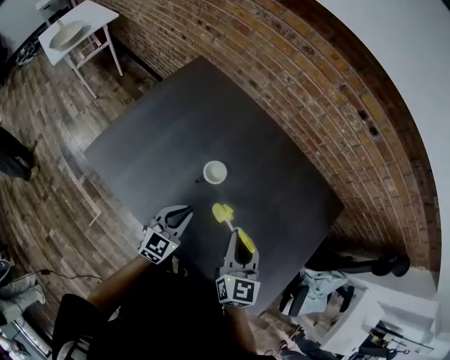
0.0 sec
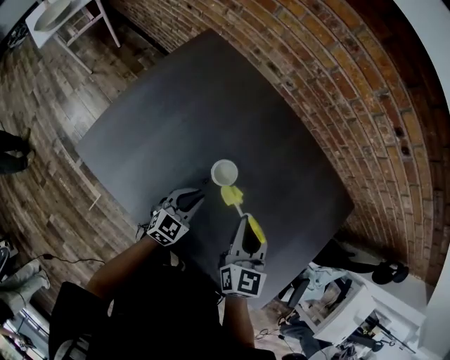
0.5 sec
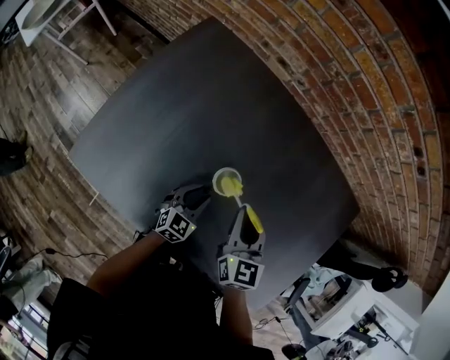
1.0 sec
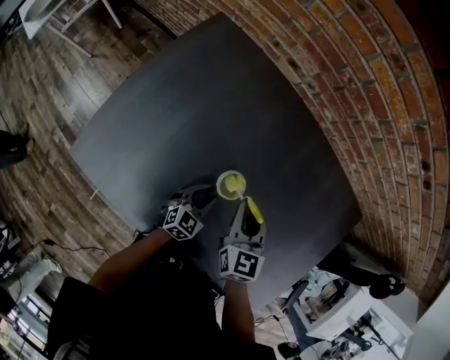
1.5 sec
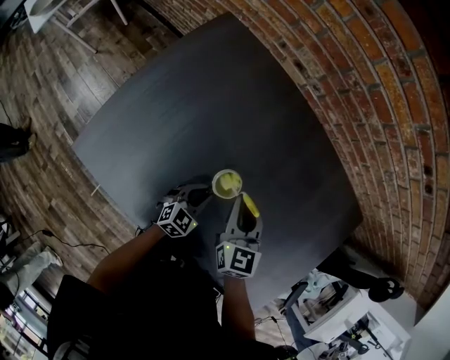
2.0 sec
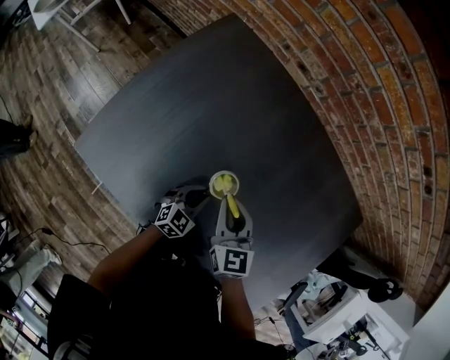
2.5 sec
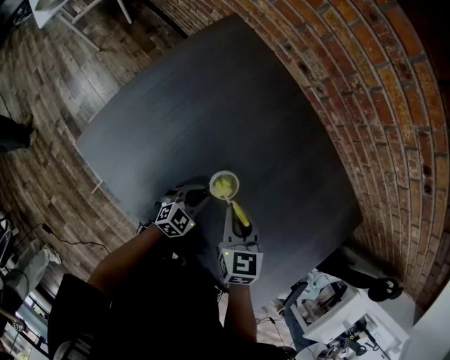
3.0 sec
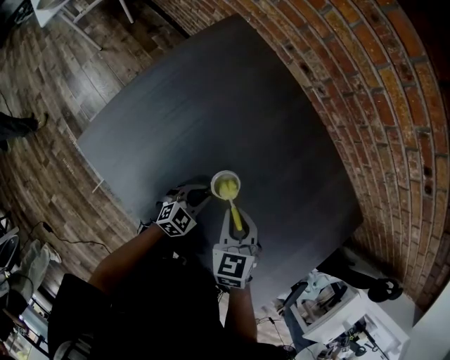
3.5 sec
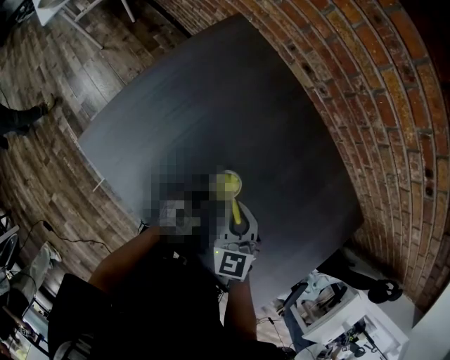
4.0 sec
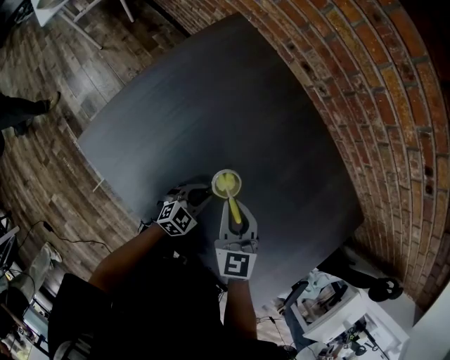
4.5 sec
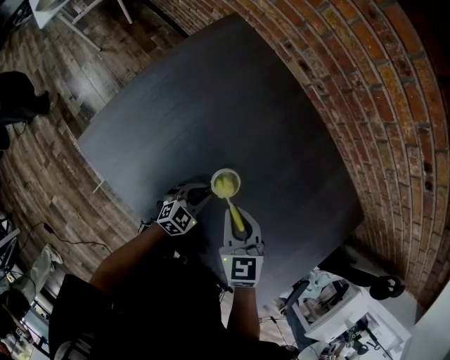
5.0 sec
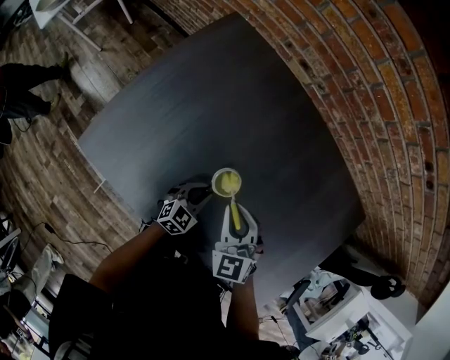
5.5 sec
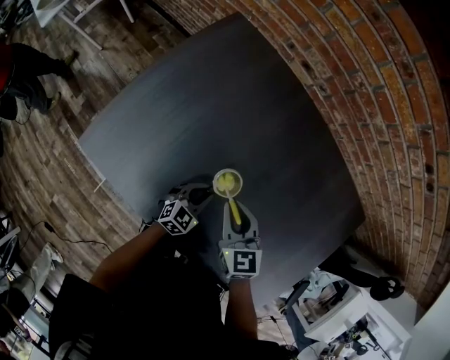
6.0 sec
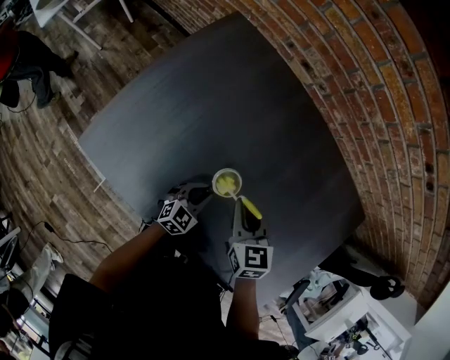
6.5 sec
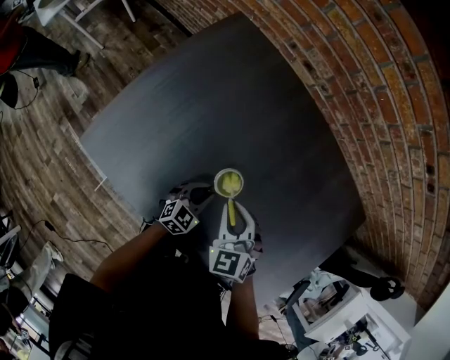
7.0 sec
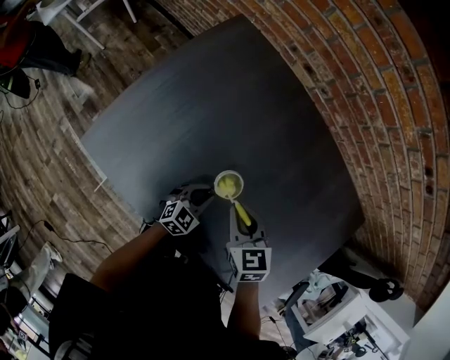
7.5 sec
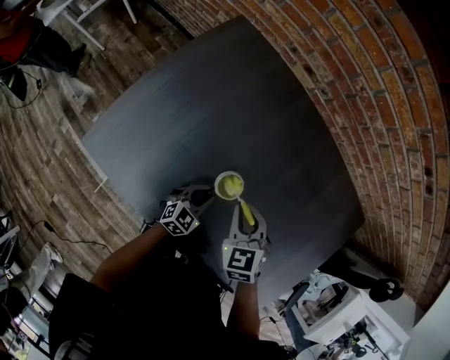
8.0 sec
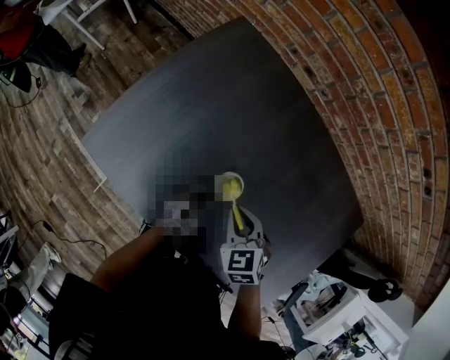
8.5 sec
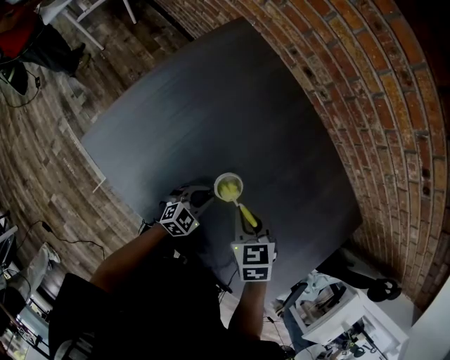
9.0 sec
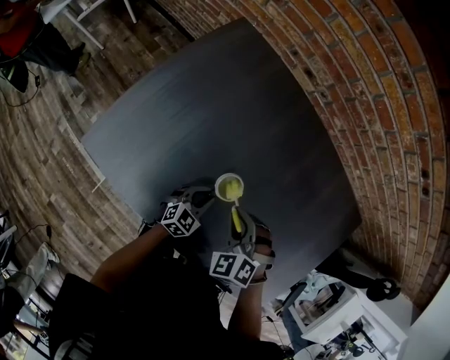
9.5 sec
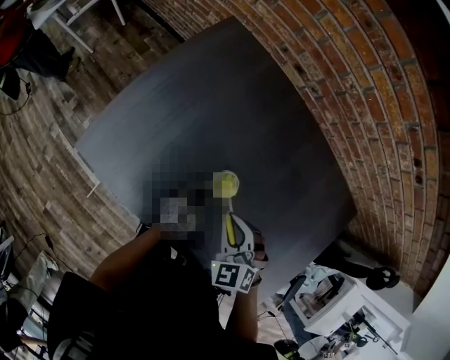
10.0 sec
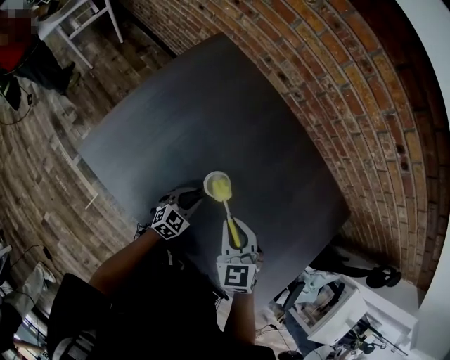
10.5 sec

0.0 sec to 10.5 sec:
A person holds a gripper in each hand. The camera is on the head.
0.0 sec to 2.0 sec: The left gripper goes approximately 25 cm downward and forward, and rotates roughly 20 degrees. Meanwhile the right gripper heads forward, to the left and downward, covering roughly 25 cm.
2.0 sec to 4.0 sec: The right gripper shifts by about 5 cm, and changes its angle by about 20 degrees.
4.0 sec to 6.5 sec: The right gripper turns by about 20 degrees.
6.5 sec to 8.5 sec: The right gripper turns by roughly 30 degrees.
8.5 sec to 10.5 sec: The right gripper heads upward, covering about 5 cm.

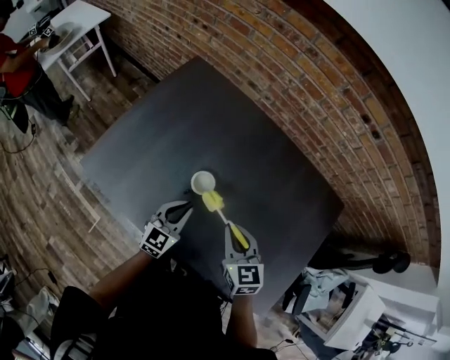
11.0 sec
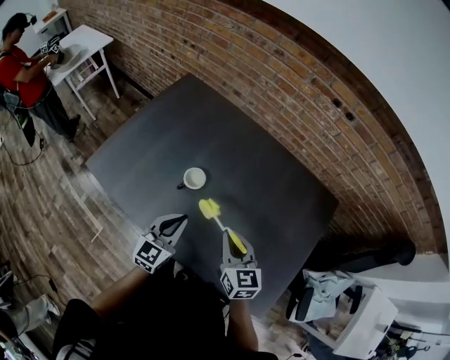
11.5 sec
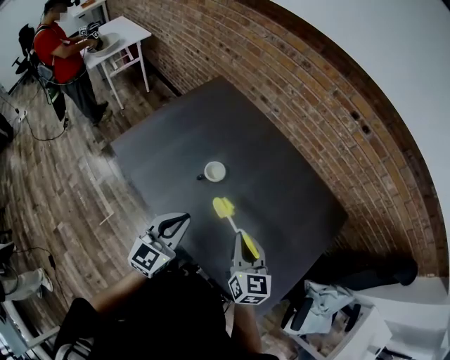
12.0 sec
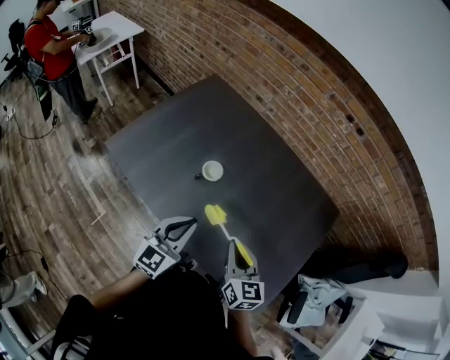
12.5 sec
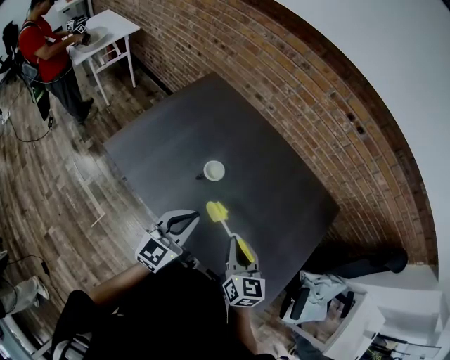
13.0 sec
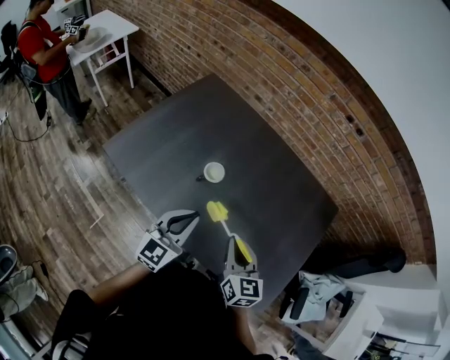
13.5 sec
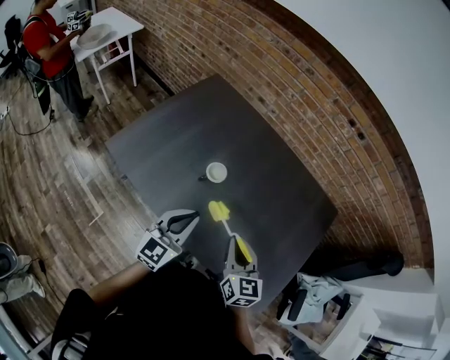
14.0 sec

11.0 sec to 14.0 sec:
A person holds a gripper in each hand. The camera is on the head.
11.0 sec to 12.5 sec: The right gripper moves backward, approximately 15 cm. Meanwhile the left gripper shifts roughly 25 cm backward and upward.
12.5 sec to 14.0 sec: The grippers move only a little.

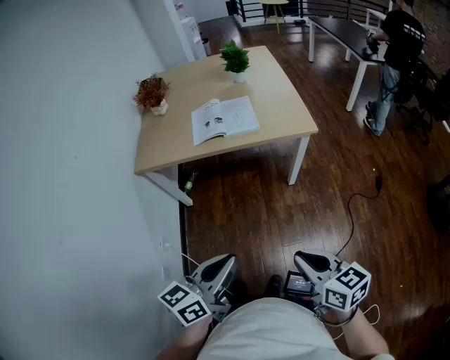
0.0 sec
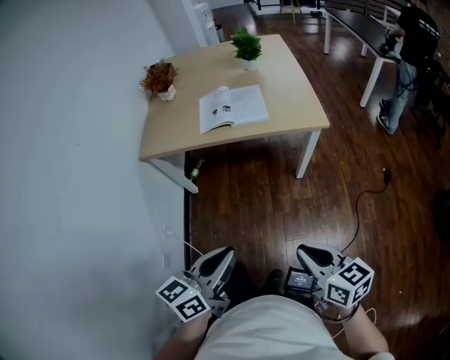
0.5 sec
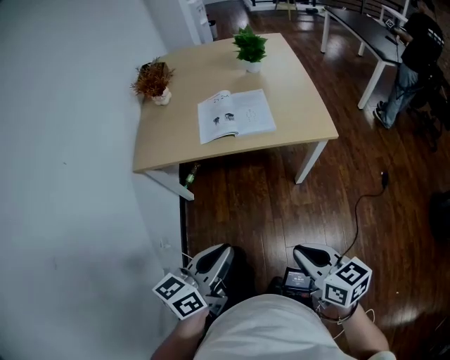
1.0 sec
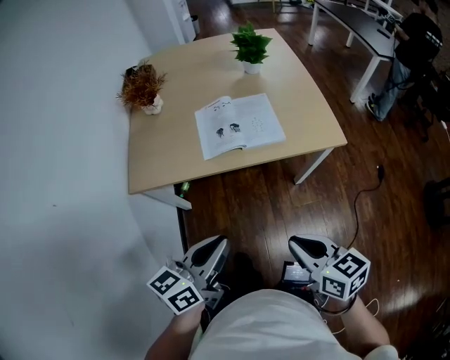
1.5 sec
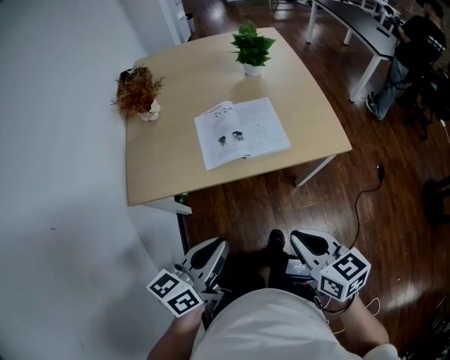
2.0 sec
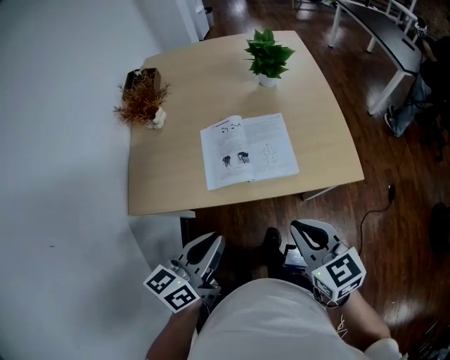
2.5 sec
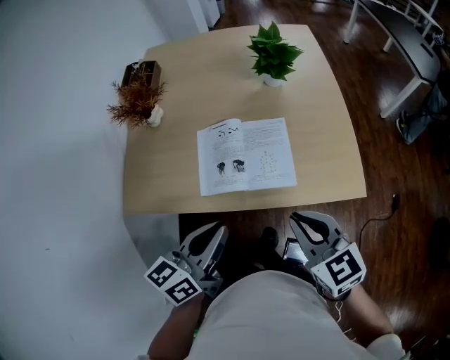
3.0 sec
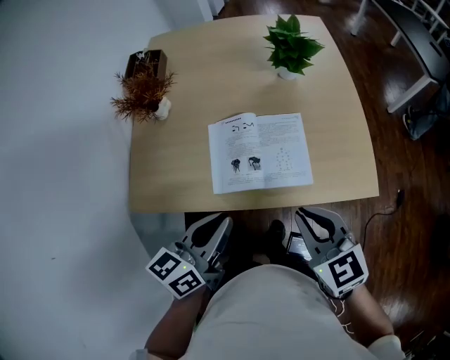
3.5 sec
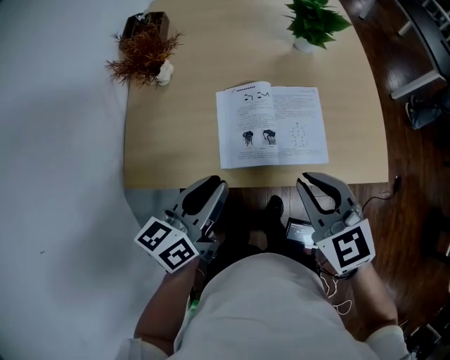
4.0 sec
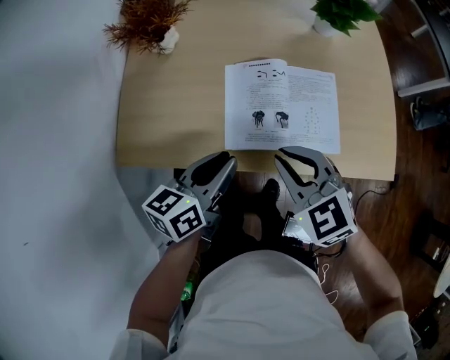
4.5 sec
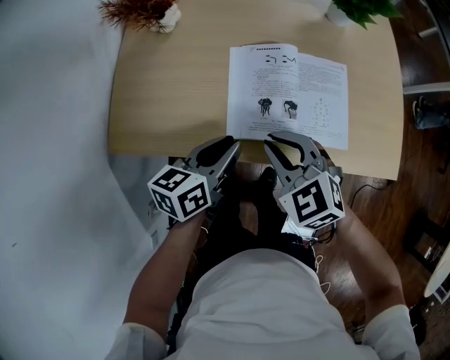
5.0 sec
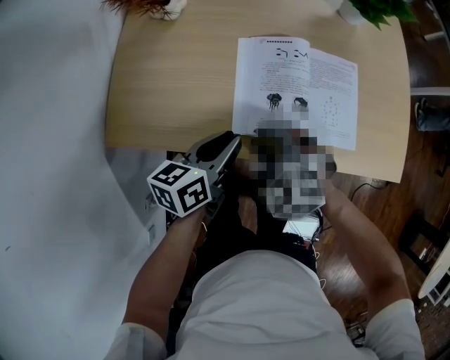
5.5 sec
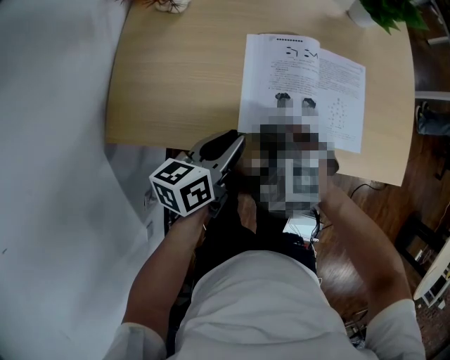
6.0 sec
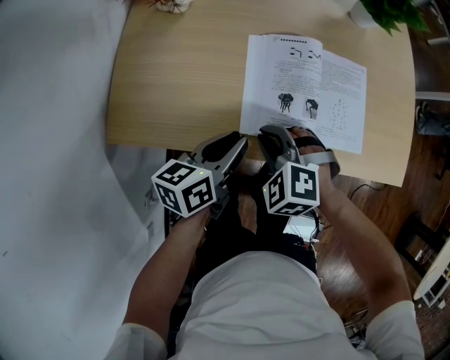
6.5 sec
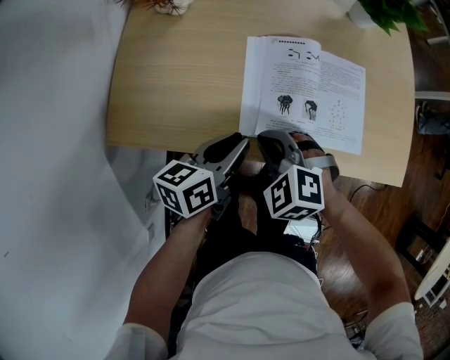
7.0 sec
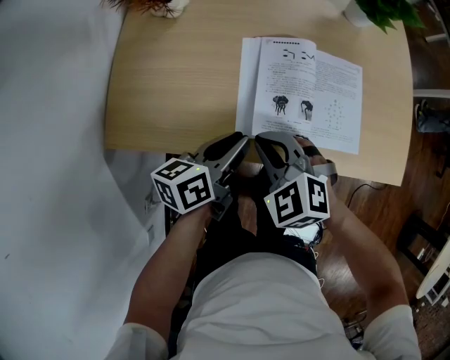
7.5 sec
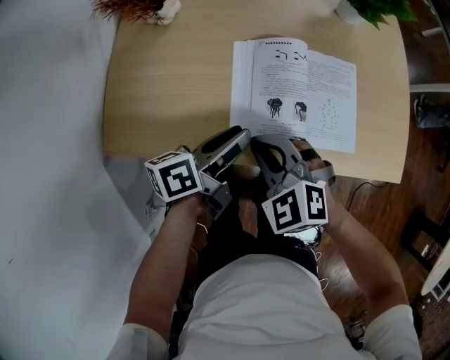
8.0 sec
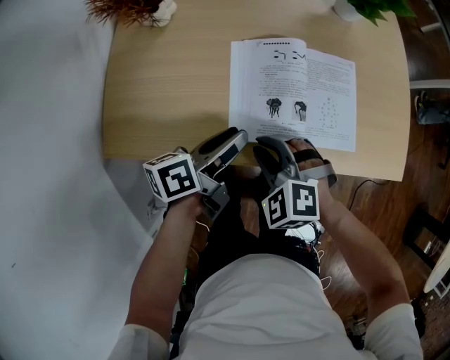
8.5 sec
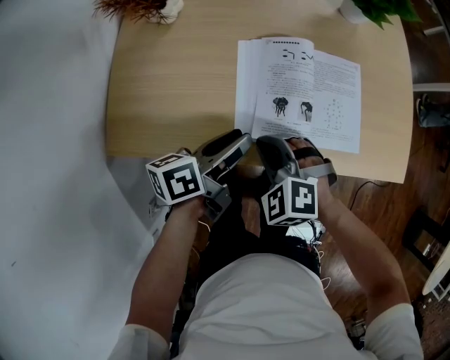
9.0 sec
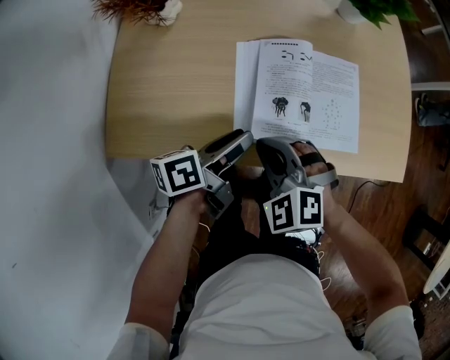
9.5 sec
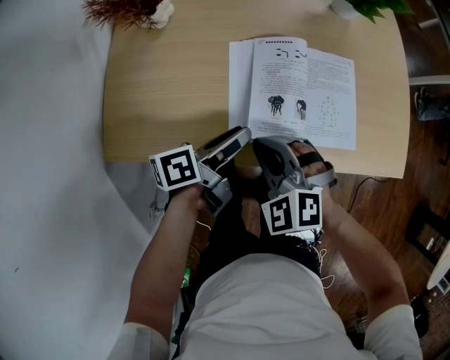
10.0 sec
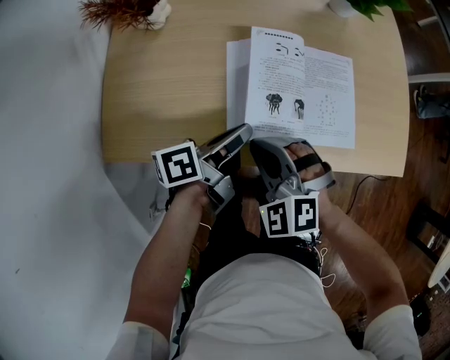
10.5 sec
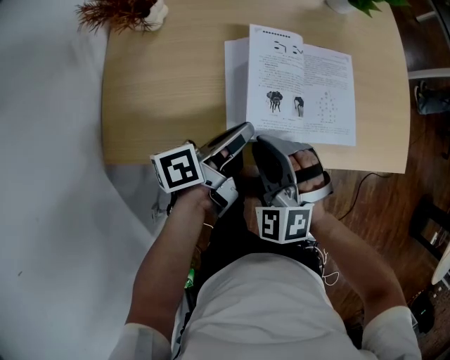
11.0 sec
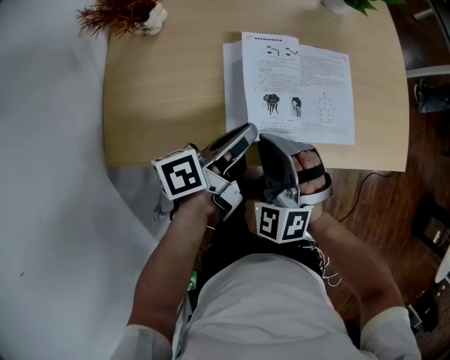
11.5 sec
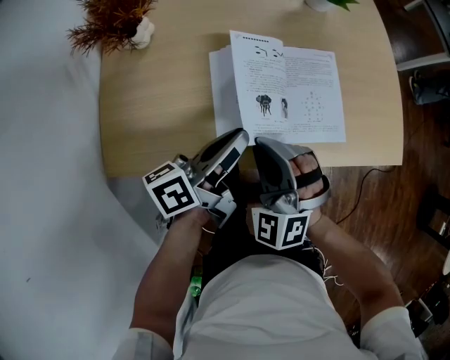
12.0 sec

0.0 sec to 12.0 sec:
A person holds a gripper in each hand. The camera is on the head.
0.0 sec to 2.0 sec: Both grippers travel together forward and to the left, roughly 30 cm.
2.0 sec to 4.0 sec: Both grippers move forward, roughly 25 cm. The right gripper turns by about 30 degrees.
4.0 sec to 6.0 sec: The left gripper shifts roughly 15 cm downward. The right gripper goes roughly 25 cm downward and to the left, and rotates around the line of its fingers by about 40 degrees, counterclockwise from behind.
6.0 sec to 8.0 sec: The right gripper is displaced upward by about 5 cm. Meanwhile the left gripper turns by some 20 degrees.
8.0 sec to 10.0 sec: The grippers move only a little.
10.0 sec to 12.0 sec: The left gripper shifts about 5 cm upward, and closes. The right gripper changes place by about 5 cm, and rotates approximately 30 degrees.

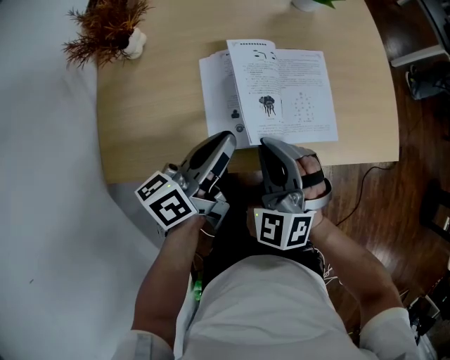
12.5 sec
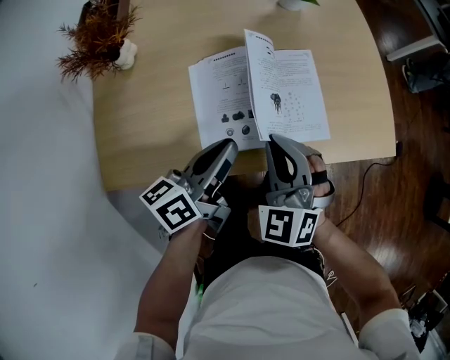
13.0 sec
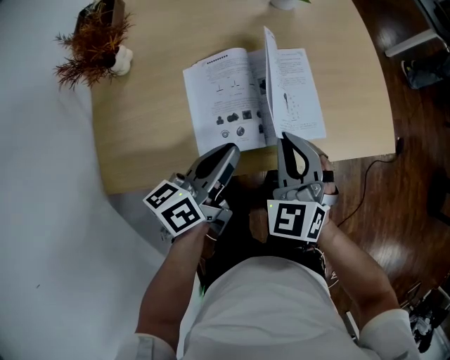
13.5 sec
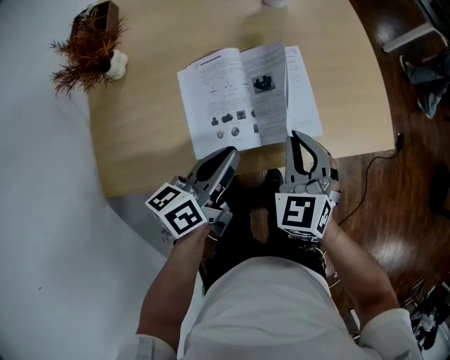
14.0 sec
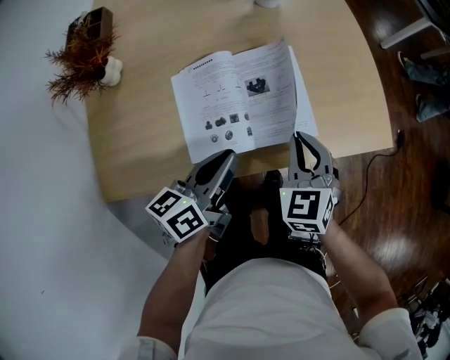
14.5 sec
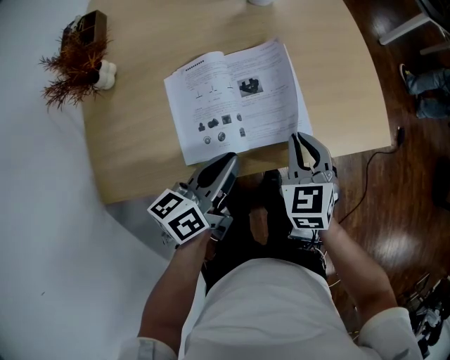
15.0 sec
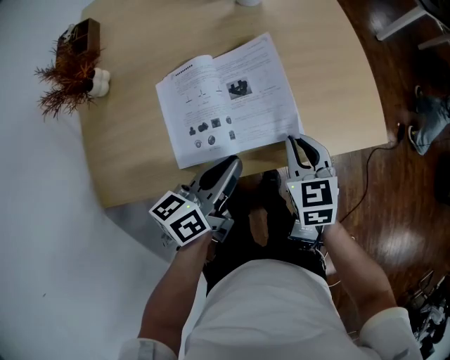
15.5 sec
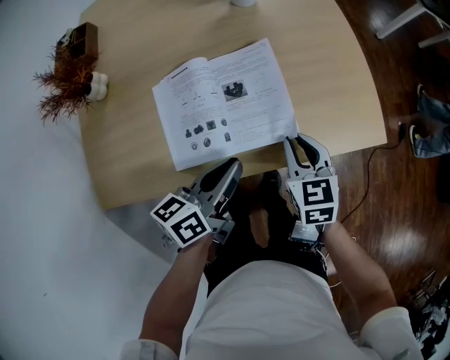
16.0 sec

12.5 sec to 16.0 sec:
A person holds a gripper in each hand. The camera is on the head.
12.5 sec to 14.5 sec: The right gripper travels to the right and forward by roughly 15 cm, and changes its angle by some 40 degrees. Meanwhile the left gripper shifts approximately 5 cm to the right.
14.5 sec to 16.0 sec: The right gripper changes place by some 5 cm, and rotates some 20 degrees, while the left gripper is displaced to the right by some 5 cm.
